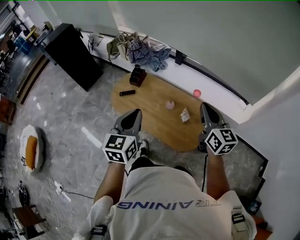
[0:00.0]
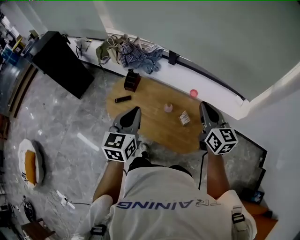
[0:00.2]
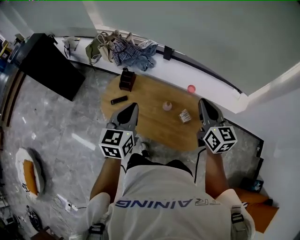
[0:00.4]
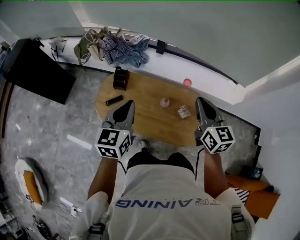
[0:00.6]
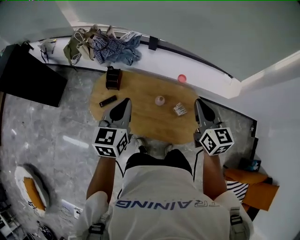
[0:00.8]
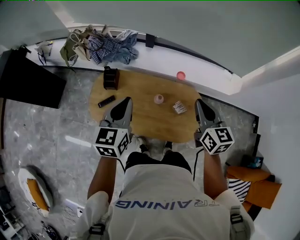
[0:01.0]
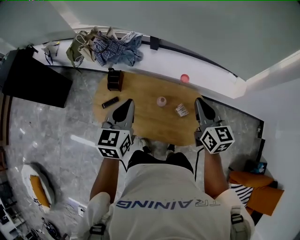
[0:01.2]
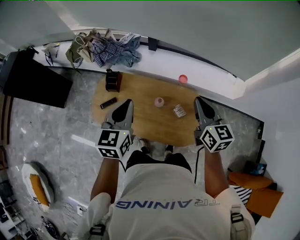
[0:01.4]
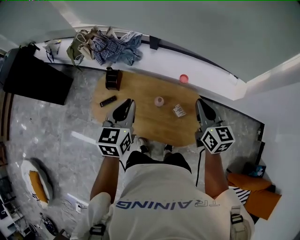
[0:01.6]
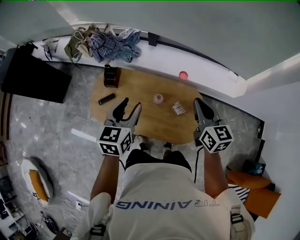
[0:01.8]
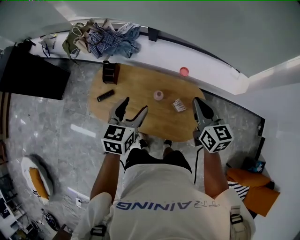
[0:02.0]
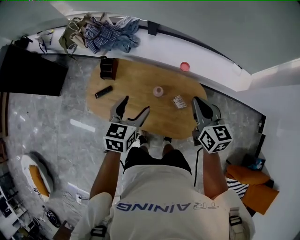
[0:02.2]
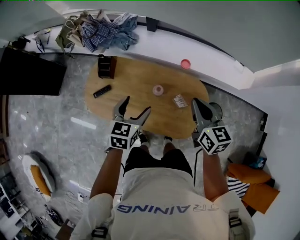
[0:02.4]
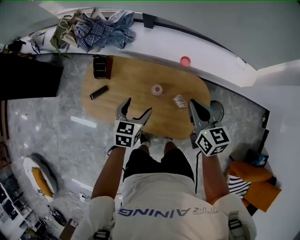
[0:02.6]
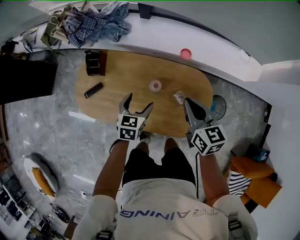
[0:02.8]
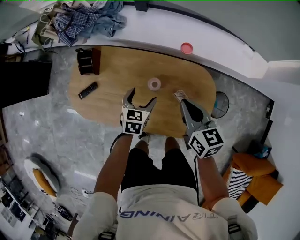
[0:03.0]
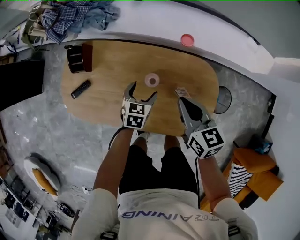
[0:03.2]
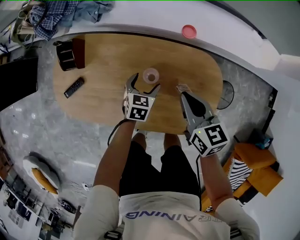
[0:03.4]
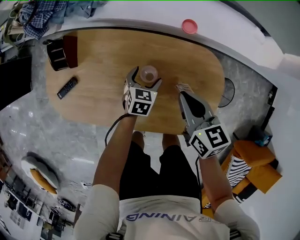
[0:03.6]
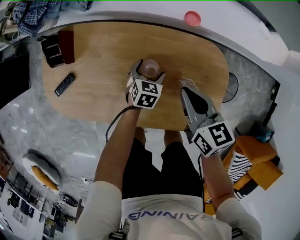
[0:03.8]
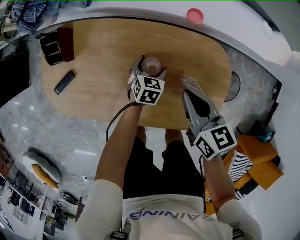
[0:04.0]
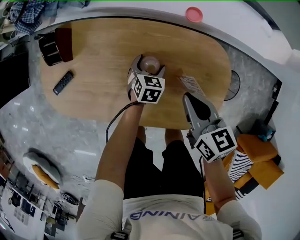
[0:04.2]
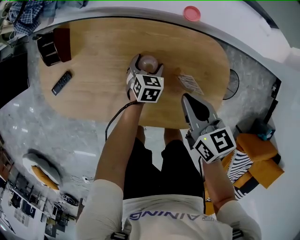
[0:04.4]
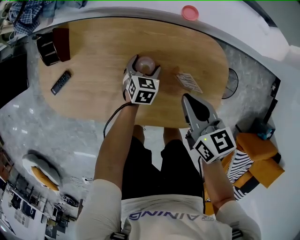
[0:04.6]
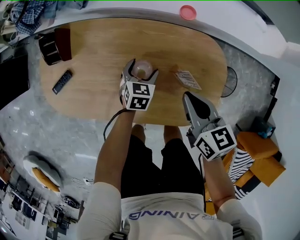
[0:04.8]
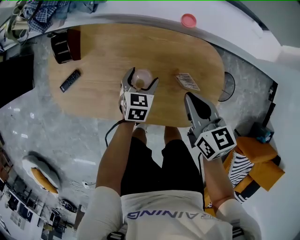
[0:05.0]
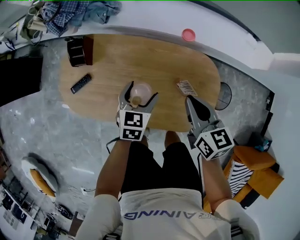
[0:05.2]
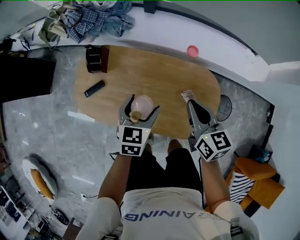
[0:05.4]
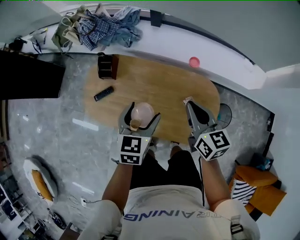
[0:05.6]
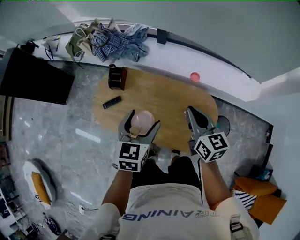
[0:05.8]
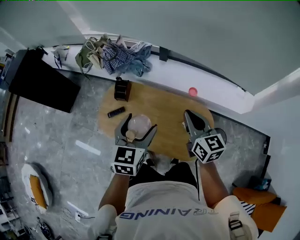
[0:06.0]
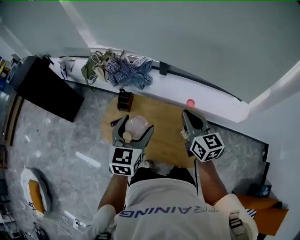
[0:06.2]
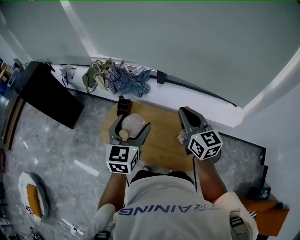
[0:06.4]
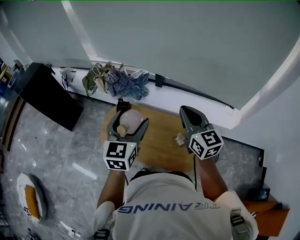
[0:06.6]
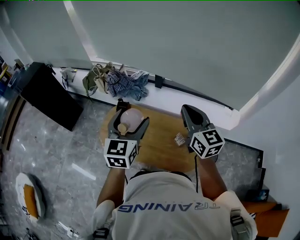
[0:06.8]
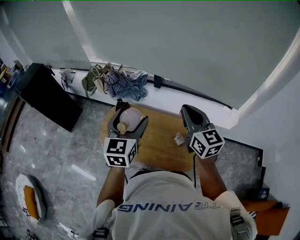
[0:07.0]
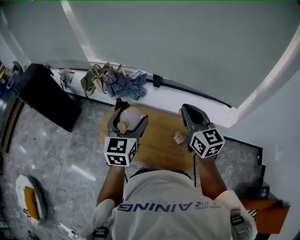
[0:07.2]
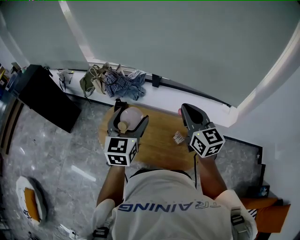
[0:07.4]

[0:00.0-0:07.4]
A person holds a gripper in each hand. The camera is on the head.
0:00.0 to 0:01.4: The left gripper travels forward by roughly 20 cm; the right gripper travels forward by roughly 10 cm.
0:01.4 to 0:03.0: The left gripper travels downward by about 40 cm, rotates about 30 degrees, and opens its fingers; the right gripper shifts about 25 cm downward.
0:03.0 to 0:04.4: The right gripper is displaced downward by approximately 15 cm. The left gripper shifts roughly 20 cm downward.
0:04.4 to 0:06.0: The right gripper shifts approximately 35 cm upward, and turns by approximately 30 degrees. Meanwhile the left gripper is displaced upward by about 60 cm, and tilts its fingers approximately 30 degrees upward.
0:06.0 to 0:07.4: The grippers both shift upward by some 15 cm.

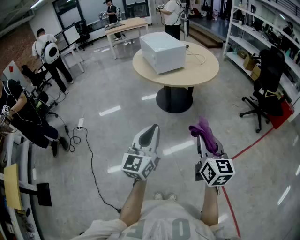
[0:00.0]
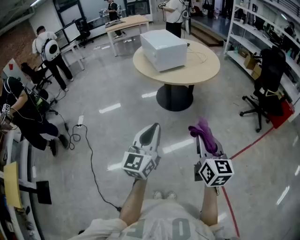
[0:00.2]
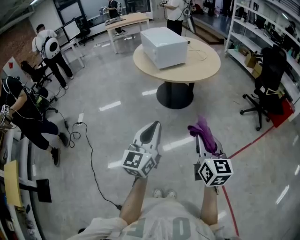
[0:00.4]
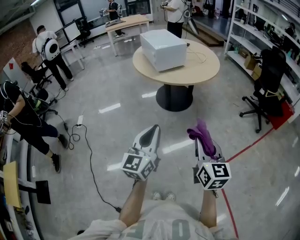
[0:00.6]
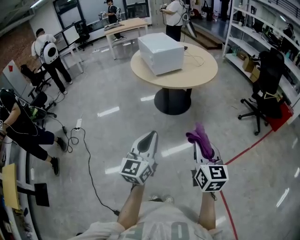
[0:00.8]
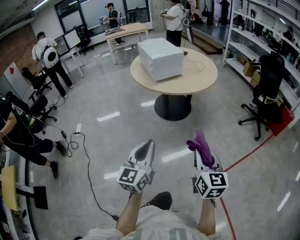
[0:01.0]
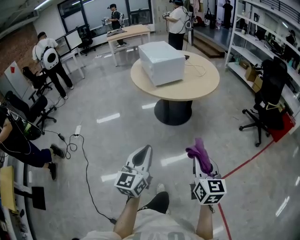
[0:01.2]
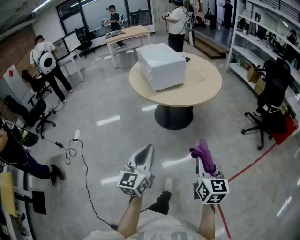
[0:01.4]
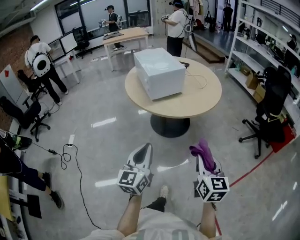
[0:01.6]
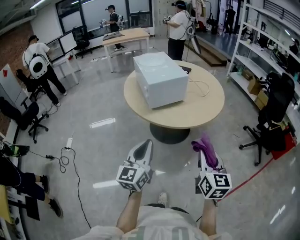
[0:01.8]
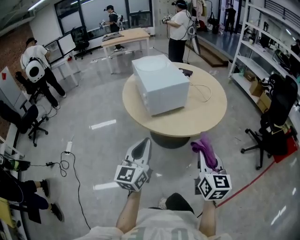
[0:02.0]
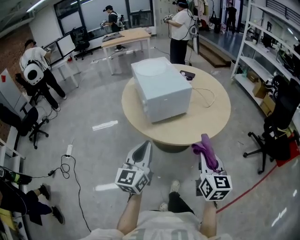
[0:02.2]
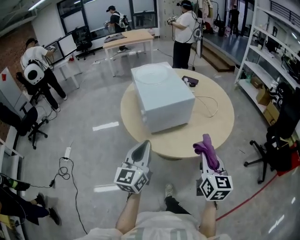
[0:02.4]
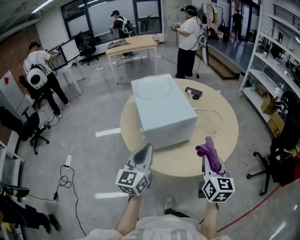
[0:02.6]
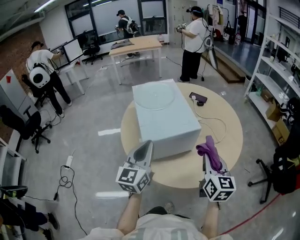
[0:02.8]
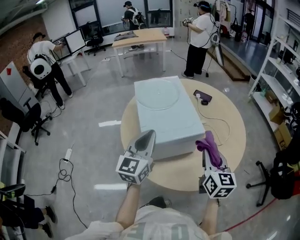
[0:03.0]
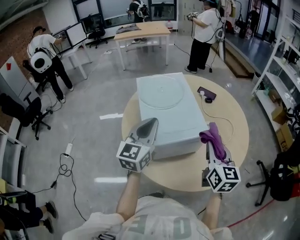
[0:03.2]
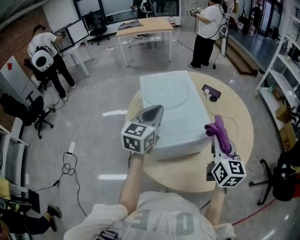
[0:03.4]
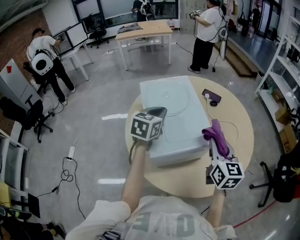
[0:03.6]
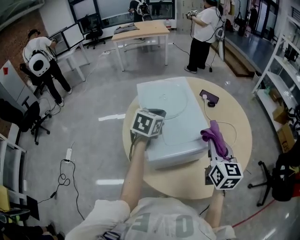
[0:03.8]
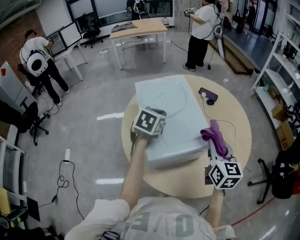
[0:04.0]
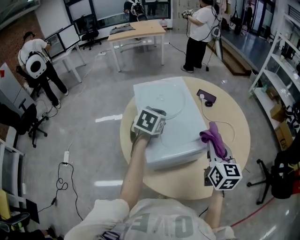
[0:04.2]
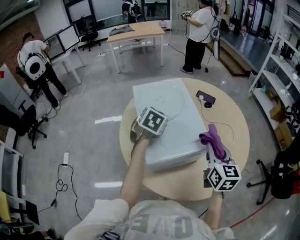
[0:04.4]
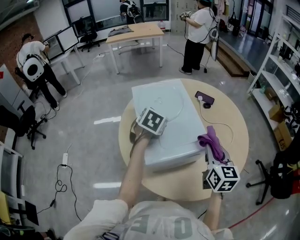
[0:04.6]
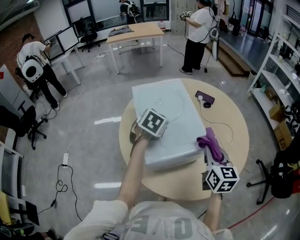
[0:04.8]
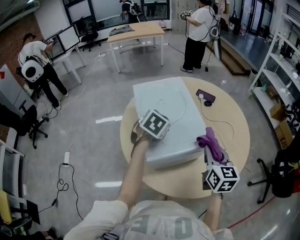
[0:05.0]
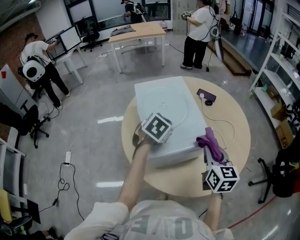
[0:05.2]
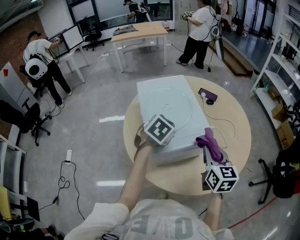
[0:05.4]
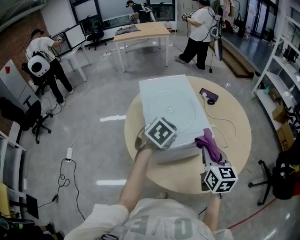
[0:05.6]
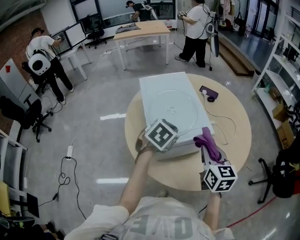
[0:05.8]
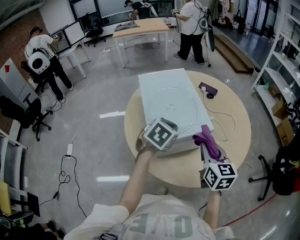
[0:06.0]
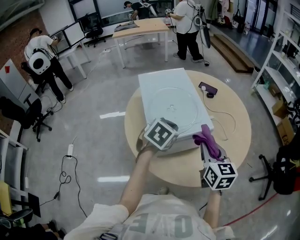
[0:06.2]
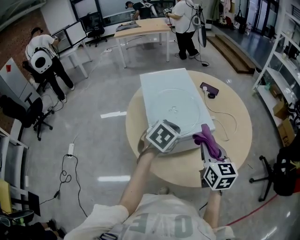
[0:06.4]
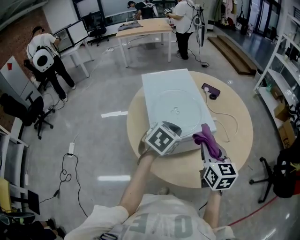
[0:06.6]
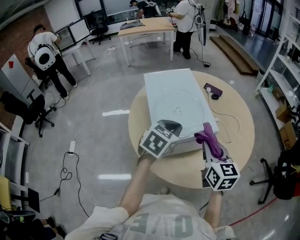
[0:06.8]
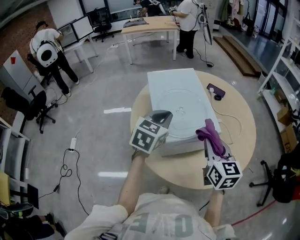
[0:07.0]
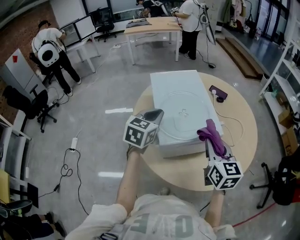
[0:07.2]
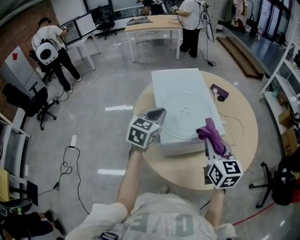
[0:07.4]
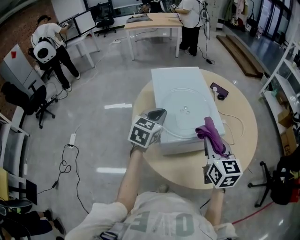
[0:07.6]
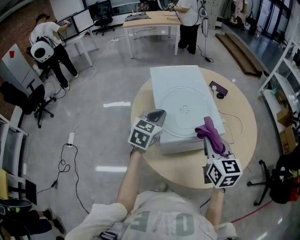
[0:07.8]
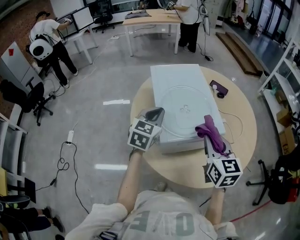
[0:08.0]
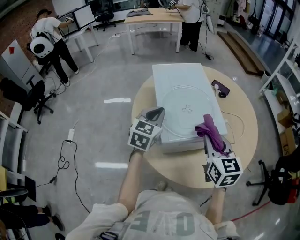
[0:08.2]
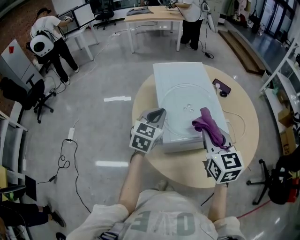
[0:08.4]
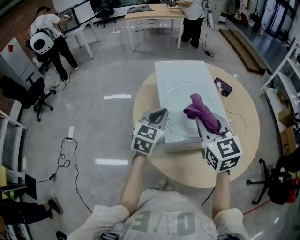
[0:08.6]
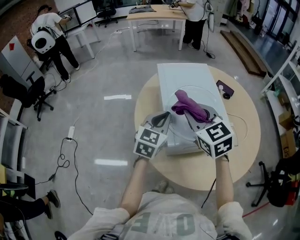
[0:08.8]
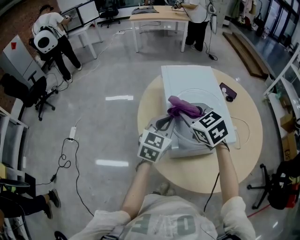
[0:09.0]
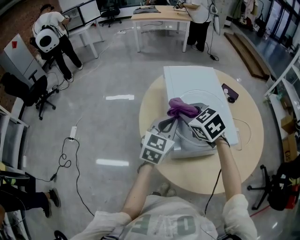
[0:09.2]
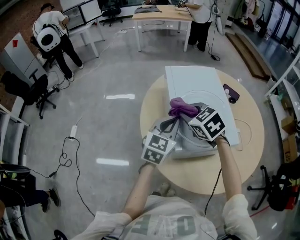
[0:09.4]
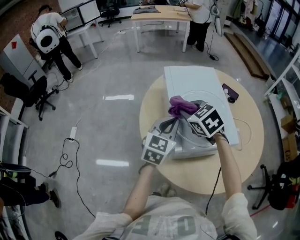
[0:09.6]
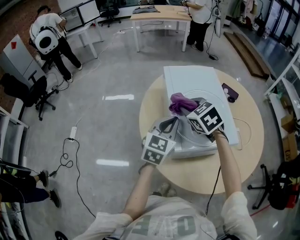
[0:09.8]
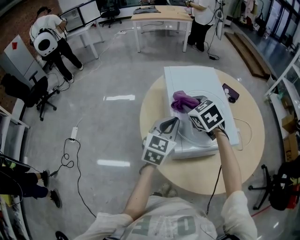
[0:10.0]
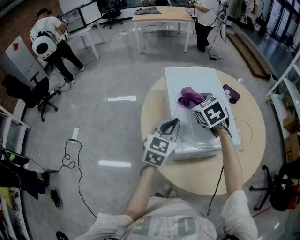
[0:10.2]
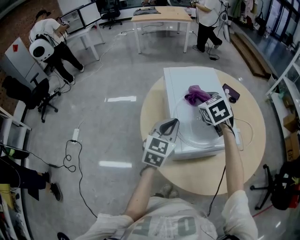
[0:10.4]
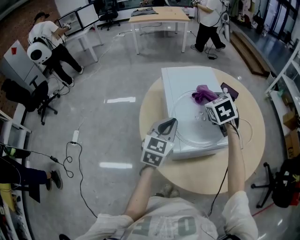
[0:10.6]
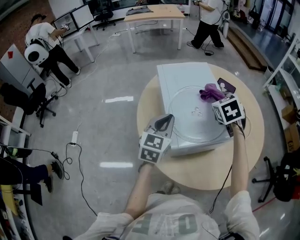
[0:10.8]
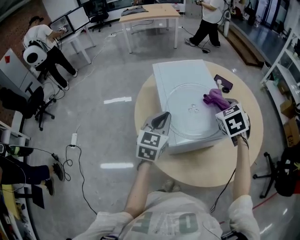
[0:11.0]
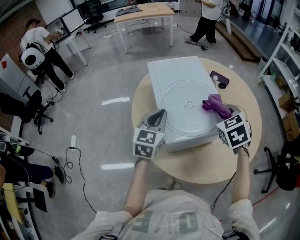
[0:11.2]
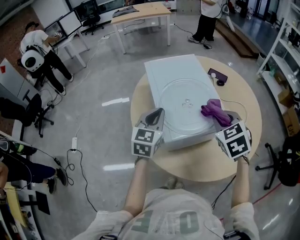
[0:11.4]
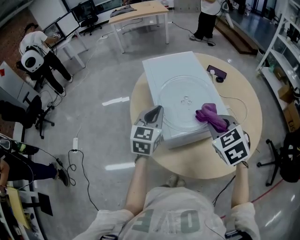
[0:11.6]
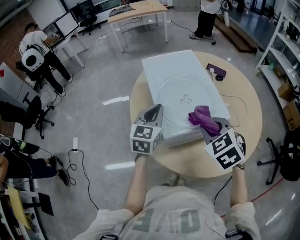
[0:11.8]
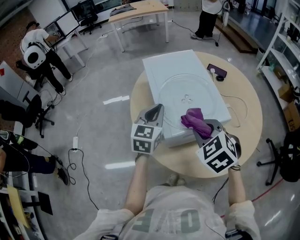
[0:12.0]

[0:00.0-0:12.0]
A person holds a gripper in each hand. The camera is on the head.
0:00.0 to 0:01.6: The two grippers go roughly 20 cm forward.
0:01.6 to 0:03.0: The two grippers travel together, forward, approximately 50 cm.
0:03.0 to 0:04.4: The right gripper travels forward by roughly 10 cm. The left gripper travels forward by roughly 20 cm, and angles its fingers downward, by some 50 degrees.
0:04.4 to 0:06.0: The right gripper is displaced backward by about 5 cm. Meanwhile the left gripper heads backward and to the right, covering roughly 15 cm.
0:06.0 to 0:07.6: The left gripper is displaced to the left by about 10 cm, and rotates some 30 degrees; the right gripper shifts by approximately 5 cm.
0:07.6 to 0:09.0: The right gripper travels to the left and forward by approximately 20 cm, and turns by approximately 40 degrees.
0:09.0 to 0:10.4: The right gripper heads forward and to the right, covering some 10 cm.
0:10.4 to 0:12.0: The right gripper moves backward, approximately 20 cm.

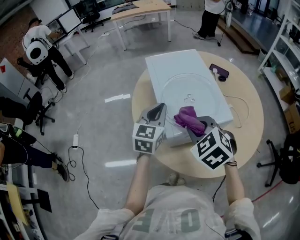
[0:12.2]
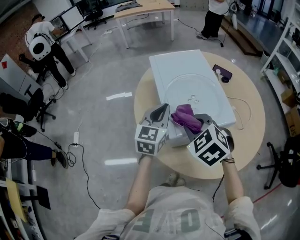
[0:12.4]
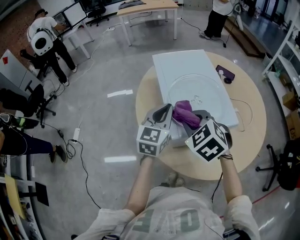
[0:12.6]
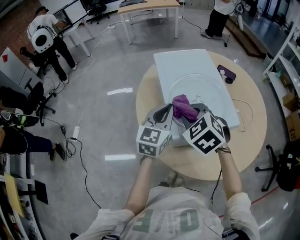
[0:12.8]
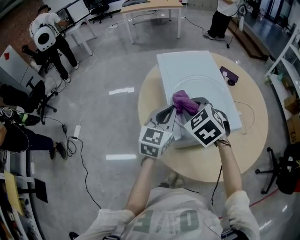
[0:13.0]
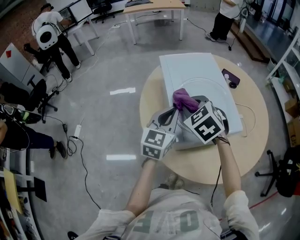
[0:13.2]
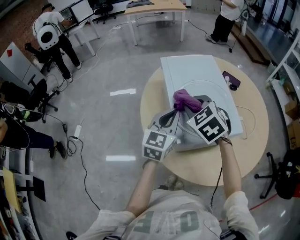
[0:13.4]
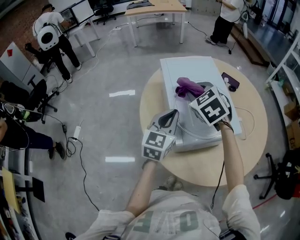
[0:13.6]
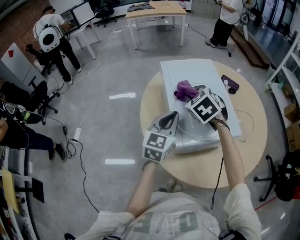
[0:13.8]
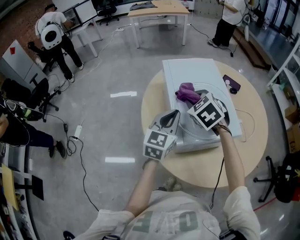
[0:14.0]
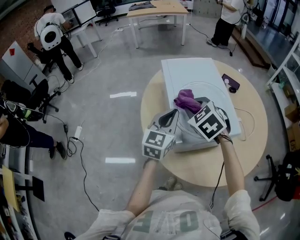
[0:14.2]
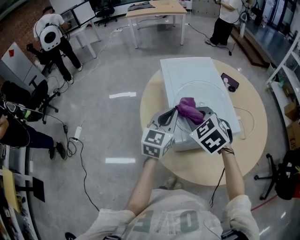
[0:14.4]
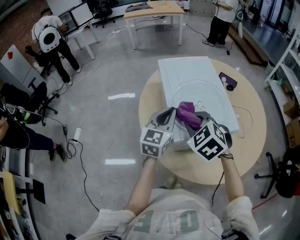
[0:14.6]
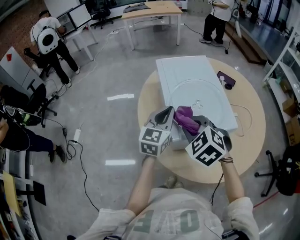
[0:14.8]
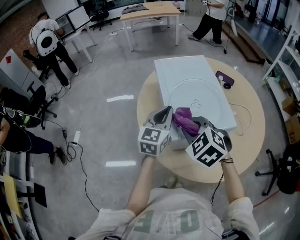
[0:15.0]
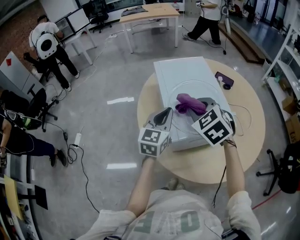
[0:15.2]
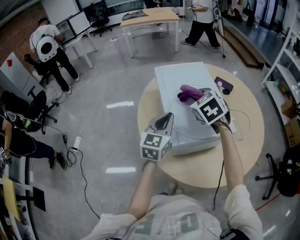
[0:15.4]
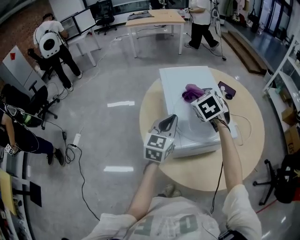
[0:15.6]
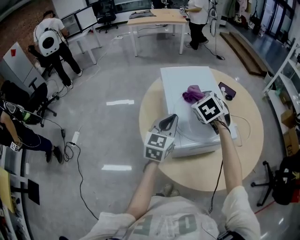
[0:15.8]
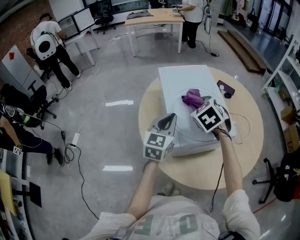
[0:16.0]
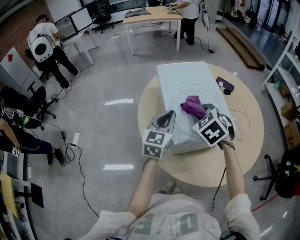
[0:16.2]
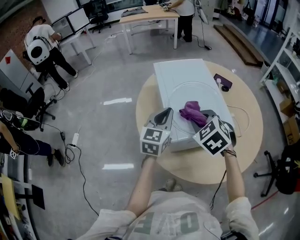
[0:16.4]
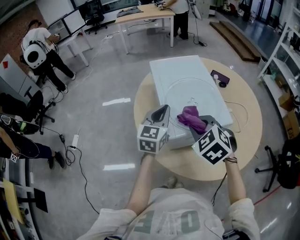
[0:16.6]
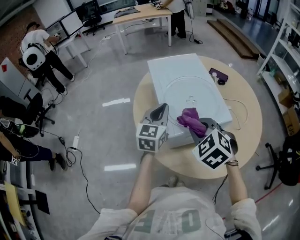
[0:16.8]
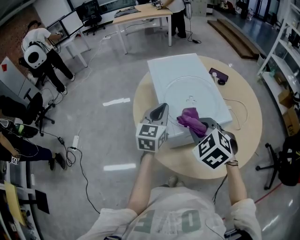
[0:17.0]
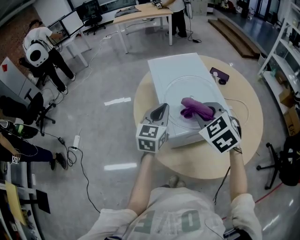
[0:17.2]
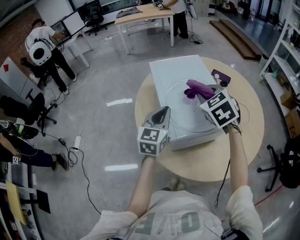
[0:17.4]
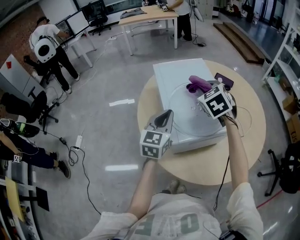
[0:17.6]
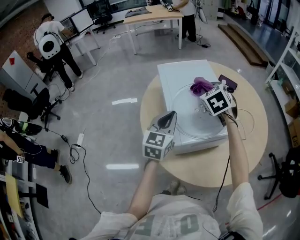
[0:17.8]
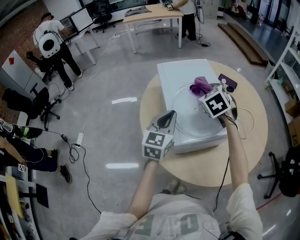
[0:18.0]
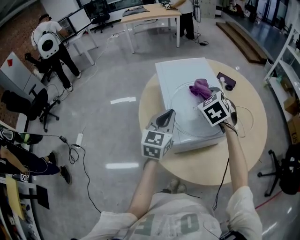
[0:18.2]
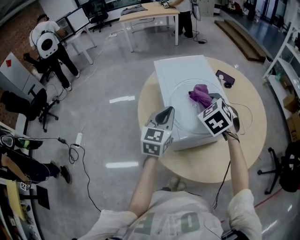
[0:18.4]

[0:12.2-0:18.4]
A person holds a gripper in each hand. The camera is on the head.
0:12.2 to 0:13.8: The right gripper is displaced forward by roughly 15 cm.
0:13.8 to 0:15.4: The right gripper moves some 15 cm backward and comes back.
0:15.4 to 0:16.8: The right gripper moves backward, approximately 15 cm.
0:16.8 to 0:18.4: The right gripper moves forward, approximately 15 cm.
